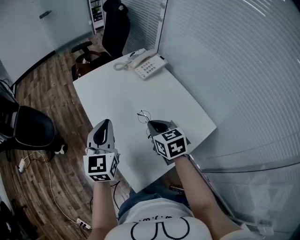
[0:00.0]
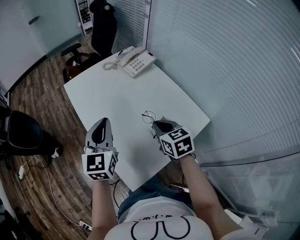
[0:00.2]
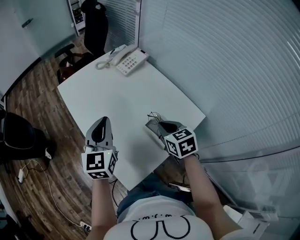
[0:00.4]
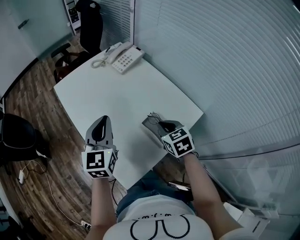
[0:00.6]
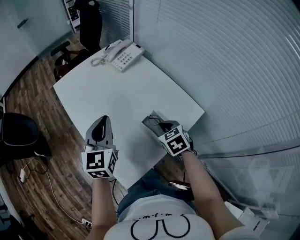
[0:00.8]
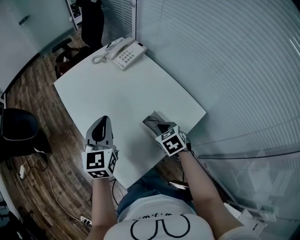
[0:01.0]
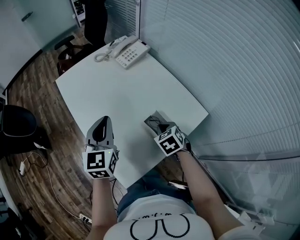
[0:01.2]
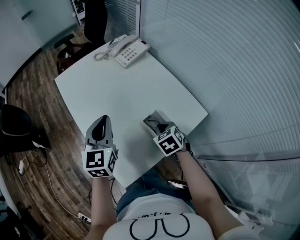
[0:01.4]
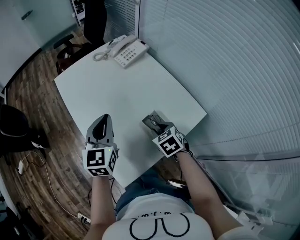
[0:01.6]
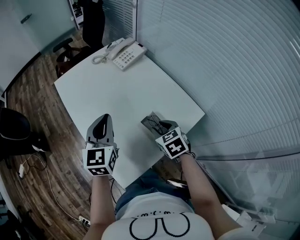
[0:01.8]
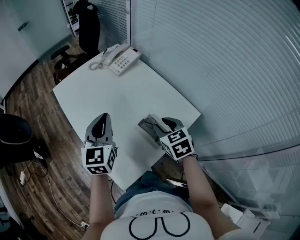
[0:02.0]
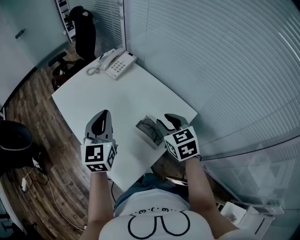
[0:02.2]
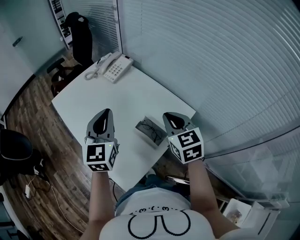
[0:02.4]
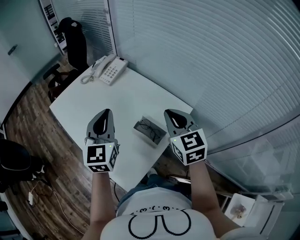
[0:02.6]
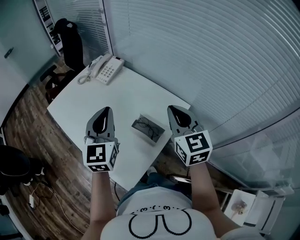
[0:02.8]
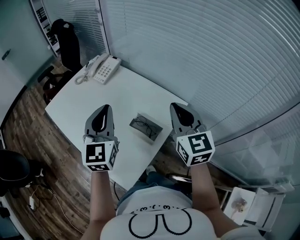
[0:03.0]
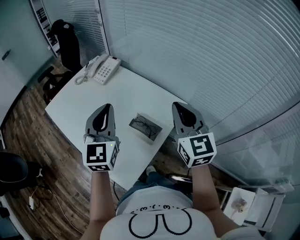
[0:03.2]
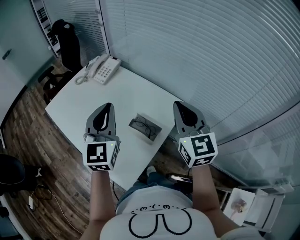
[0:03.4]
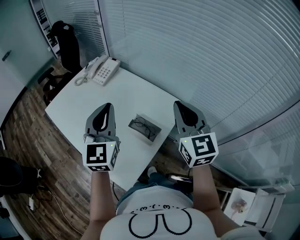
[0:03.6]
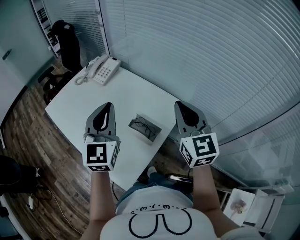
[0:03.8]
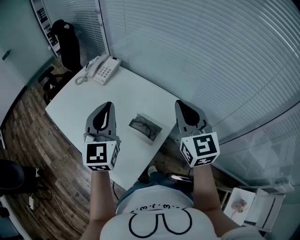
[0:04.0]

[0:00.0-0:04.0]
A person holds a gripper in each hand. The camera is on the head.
0:00.0 to 0:01.4: The left gripper shifts roughly 10 cm to the right; the right gripper is displaced to the right and downward by approximately 15 cm, and rotates approximately 30 degrees.
0:01.4 to 0:02.6: The right gripper travels upward by some 20 cm, angles its fingers upward, by some 40 degrees, and opens, then closes again. Meanwhile the left gripper is displaced upward and to the right by about 10 cm.
0:02.6 to 0:04.0: The right gripper travels upward by some 5 cm. Meanwhile the left gripper moves about 5 cm.

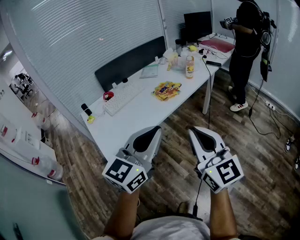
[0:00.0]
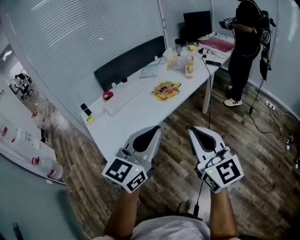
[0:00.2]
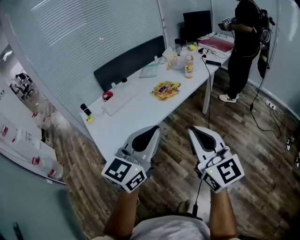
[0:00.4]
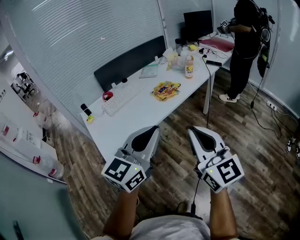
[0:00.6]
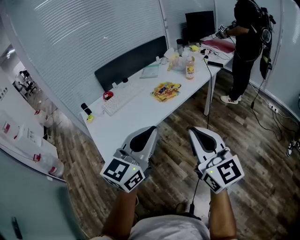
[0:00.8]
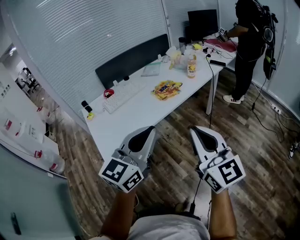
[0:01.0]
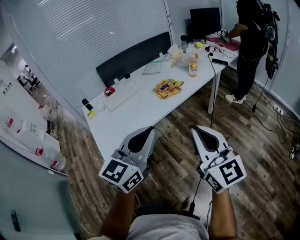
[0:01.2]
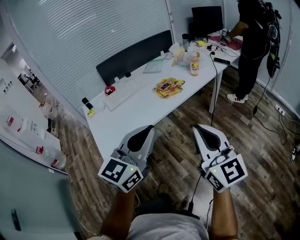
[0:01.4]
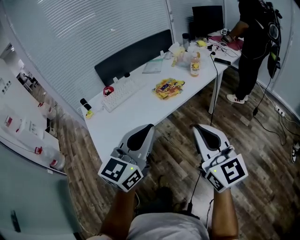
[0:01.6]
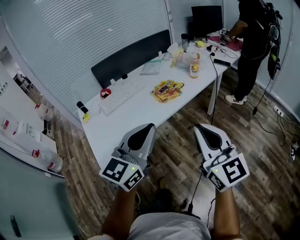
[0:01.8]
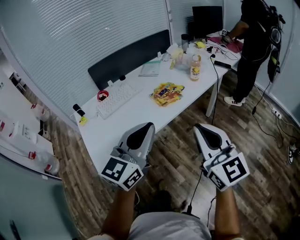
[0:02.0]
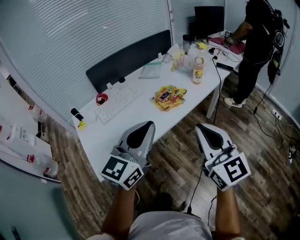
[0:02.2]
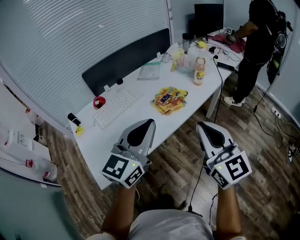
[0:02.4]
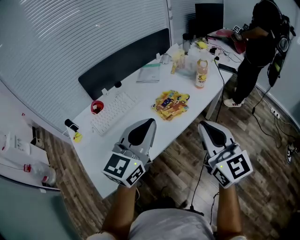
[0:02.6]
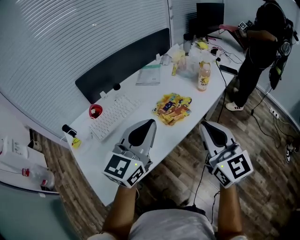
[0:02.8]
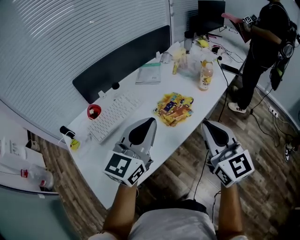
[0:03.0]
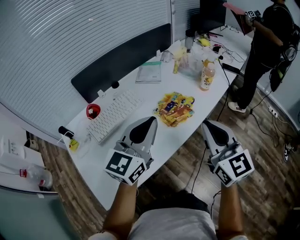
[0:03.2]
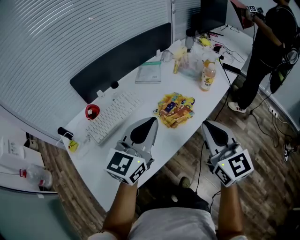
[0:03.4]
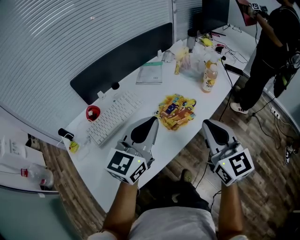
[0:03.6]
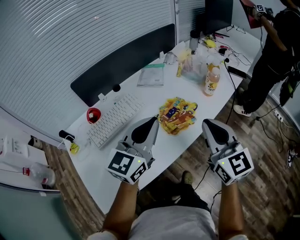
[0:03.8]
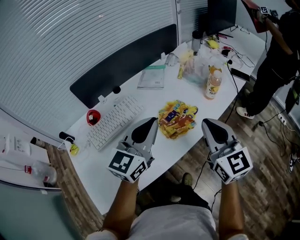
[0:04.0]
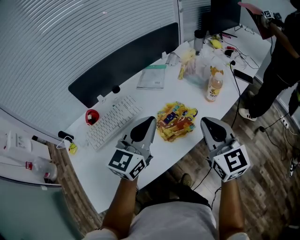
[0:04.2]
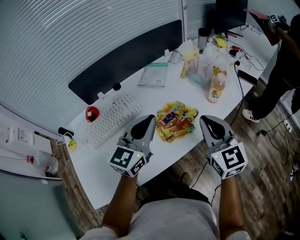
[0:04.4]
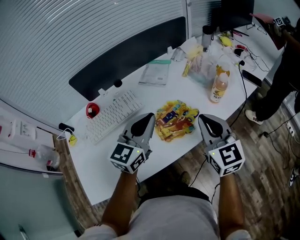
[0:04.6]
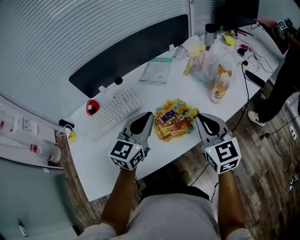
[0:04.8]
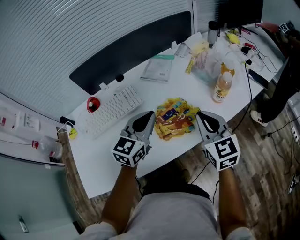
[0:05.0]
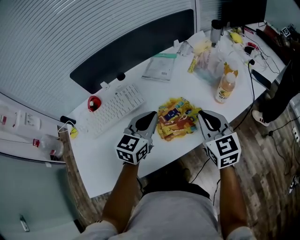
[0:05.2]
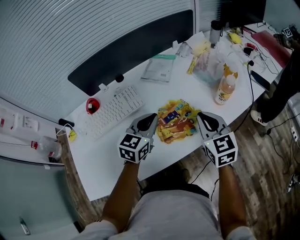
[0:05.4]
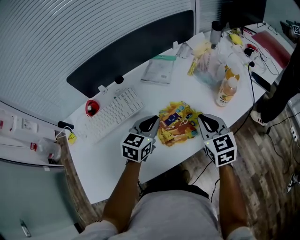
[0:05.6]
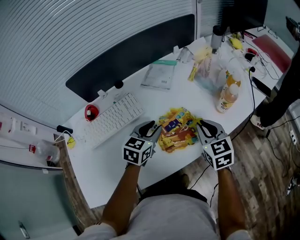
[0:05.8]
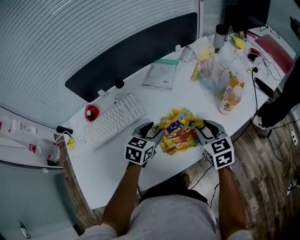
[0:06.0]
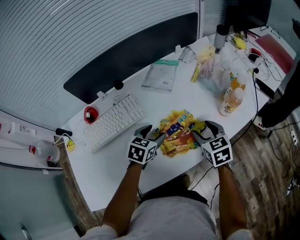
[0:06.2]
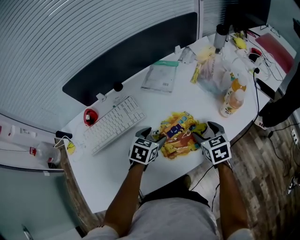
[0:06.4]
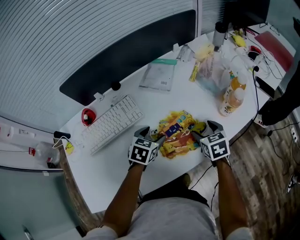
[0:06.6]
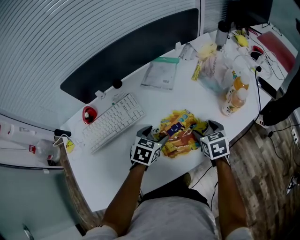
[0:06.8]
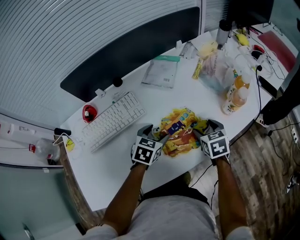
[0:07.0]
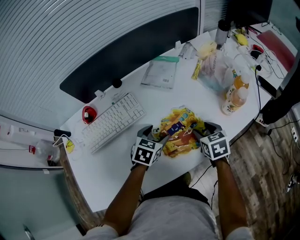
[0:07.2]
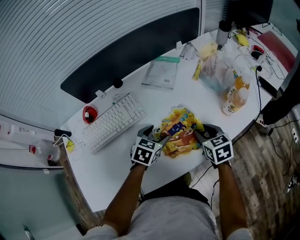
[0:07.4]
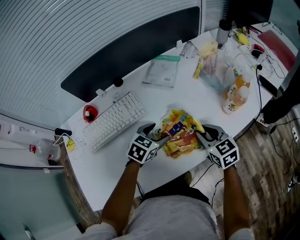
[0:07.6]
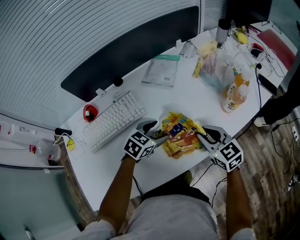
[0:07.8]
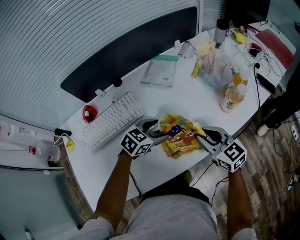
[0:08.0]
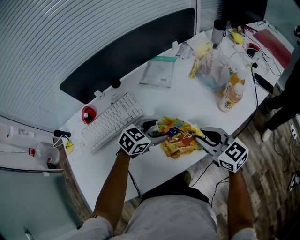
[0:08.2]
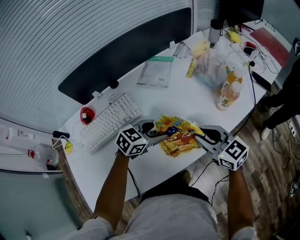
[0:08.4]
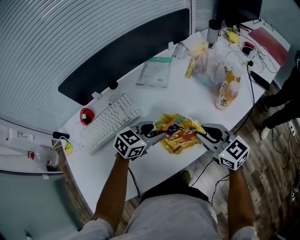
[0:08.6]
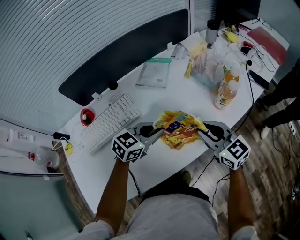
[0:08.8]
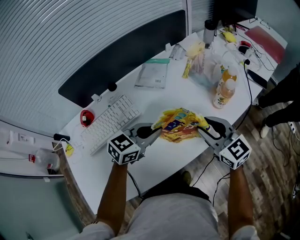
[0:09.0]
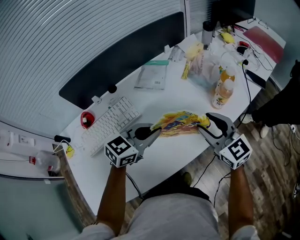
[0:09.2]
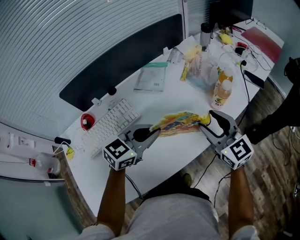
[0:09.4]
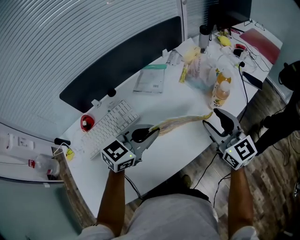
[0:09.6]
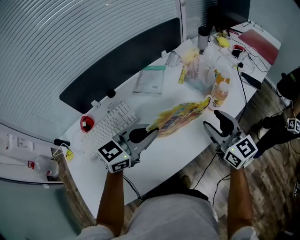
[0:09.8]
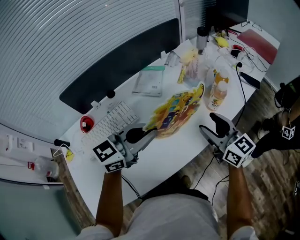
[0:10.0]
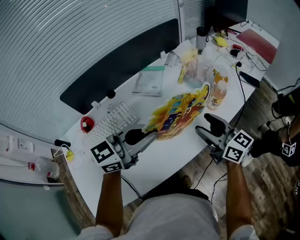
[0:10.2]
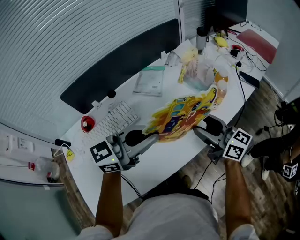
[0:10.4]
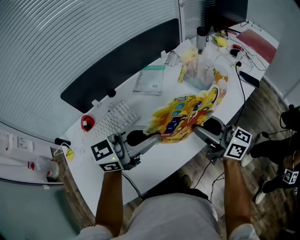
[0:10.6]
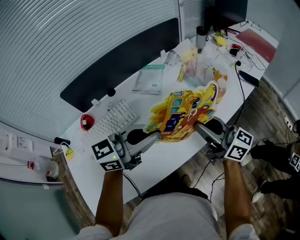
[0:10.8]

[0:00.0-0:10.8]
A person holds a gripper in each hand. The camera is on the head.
0:00.0 to 0:01.6: The right gripper travels forward and to the right by about 10 cm; the left gripper shifts roughly 5 cm forward.
0:01.6 to 0:03.0: The grippers both shift forward by approximately 30 cm.
0:03.0 to 0:04.6: The grippers both shift forward and downward by roughly 20 cm.
0:04.6 to 0:06.2: The right gripper moves downward and forward, roughly 20 cm, rotates roughly 30 degrees, and opens its fingers, while the left gripper is displaced downward by roughly 20 cm, points its fingers some 40 degrees further downward, and opens up.
0:06.2 to 0:07.8: The right gripper closes.
0:07.8 to 0:09.2: The two grippers go roughly 10 cm upward. The left gripper changes its angle by about 20 degrees, and closes its fingers.
0:09.2 to 0:10.8: The left gripper heads upward, covering roughly 10 cm, and turns by some 20 degrees. The right gripper goes roughly 5 cm upward, and rotates roughly 40 degrees.

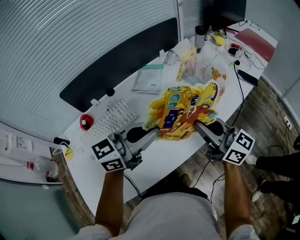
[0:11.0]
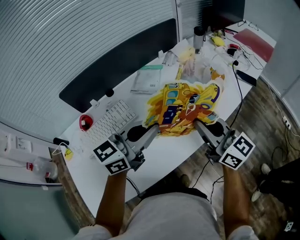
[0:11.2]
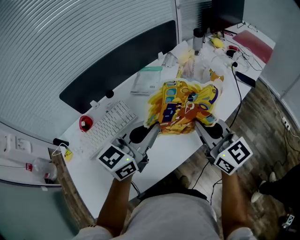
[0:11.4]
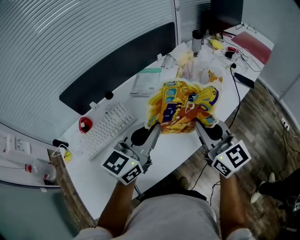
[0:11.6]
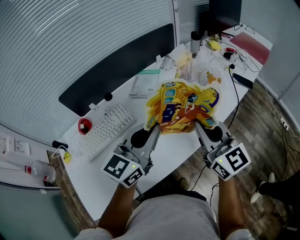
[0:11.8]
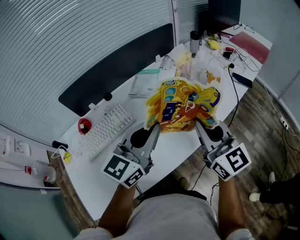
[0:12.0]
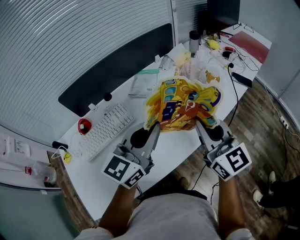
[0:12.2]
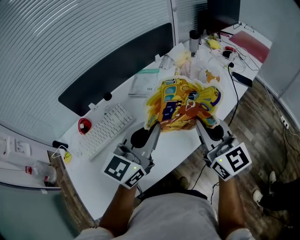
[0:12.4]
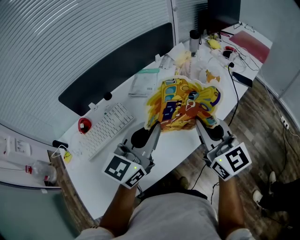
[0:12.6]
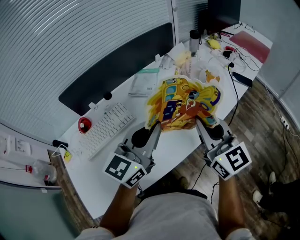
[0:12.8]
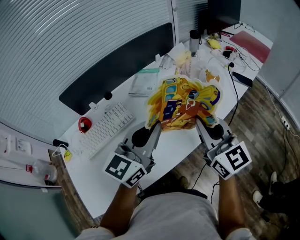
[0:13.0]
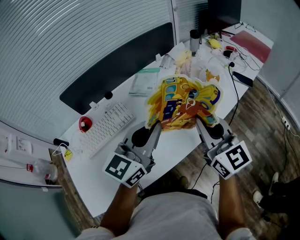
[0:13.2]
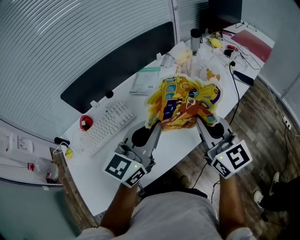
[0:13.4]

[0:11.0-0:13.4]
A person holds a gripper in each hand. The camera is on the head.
0:11.0 to 0:12.2: The right gripper changes its angle by about 30 degrees, while the left gripper changes its angle by approximately 30 degrees.
0:12.2 to 0:13.4: The two grippers keep their place.

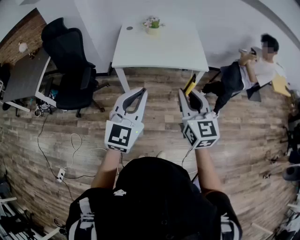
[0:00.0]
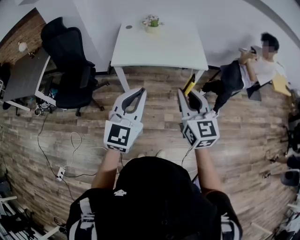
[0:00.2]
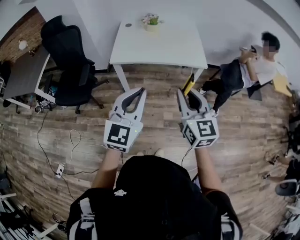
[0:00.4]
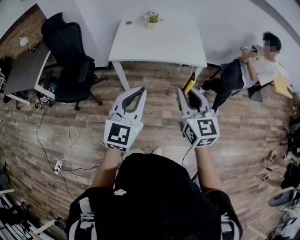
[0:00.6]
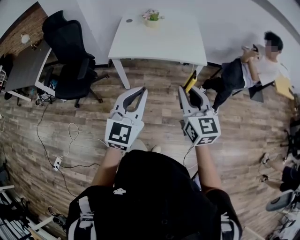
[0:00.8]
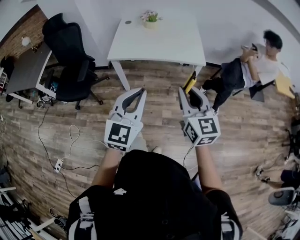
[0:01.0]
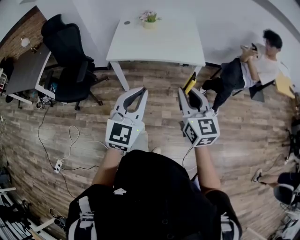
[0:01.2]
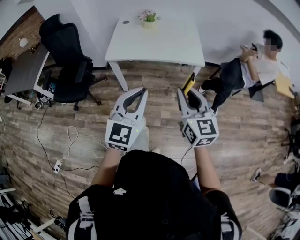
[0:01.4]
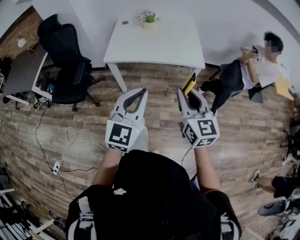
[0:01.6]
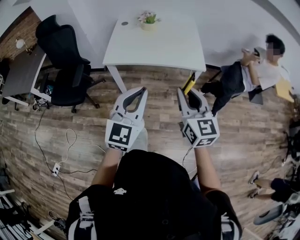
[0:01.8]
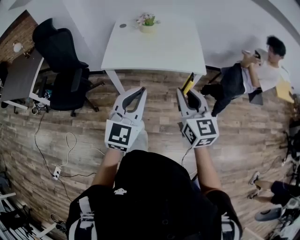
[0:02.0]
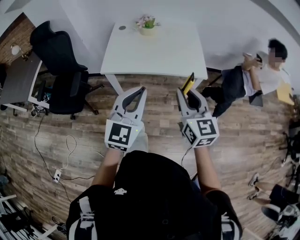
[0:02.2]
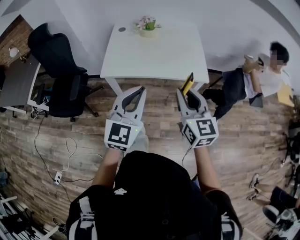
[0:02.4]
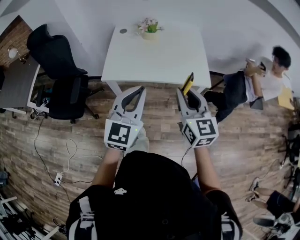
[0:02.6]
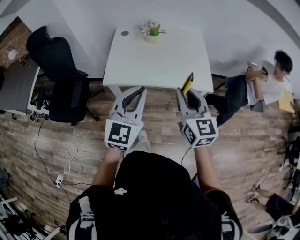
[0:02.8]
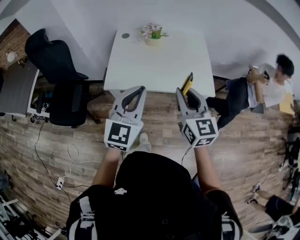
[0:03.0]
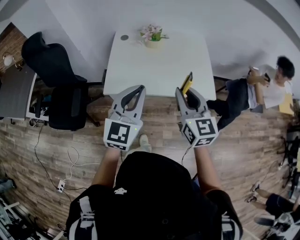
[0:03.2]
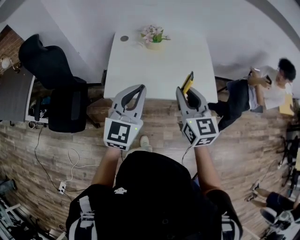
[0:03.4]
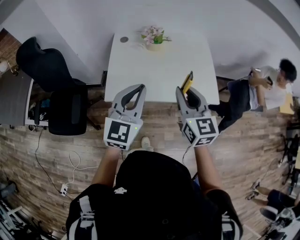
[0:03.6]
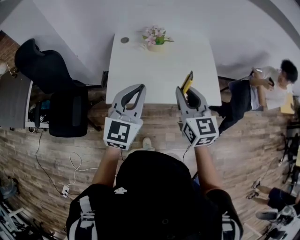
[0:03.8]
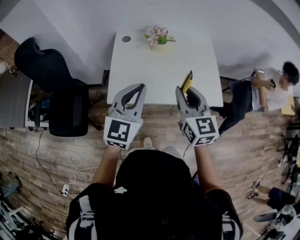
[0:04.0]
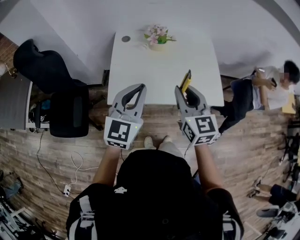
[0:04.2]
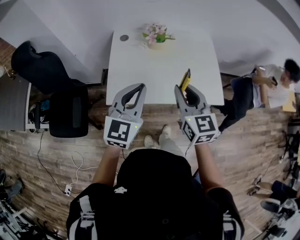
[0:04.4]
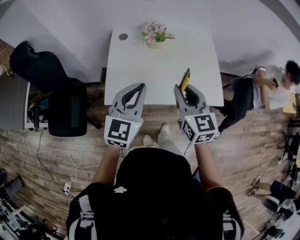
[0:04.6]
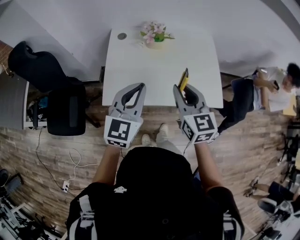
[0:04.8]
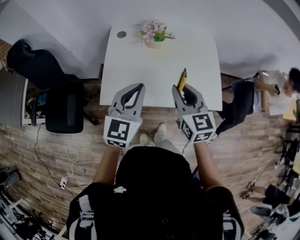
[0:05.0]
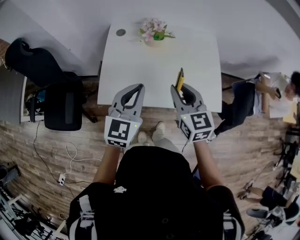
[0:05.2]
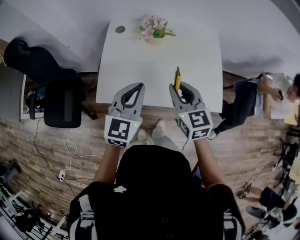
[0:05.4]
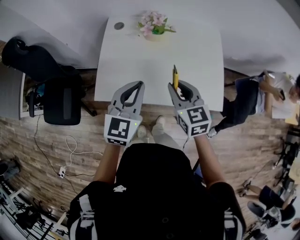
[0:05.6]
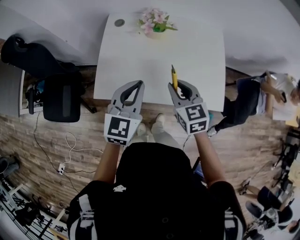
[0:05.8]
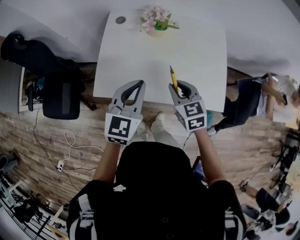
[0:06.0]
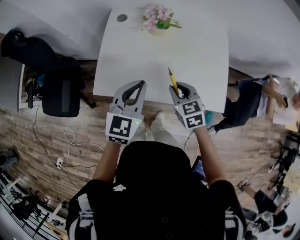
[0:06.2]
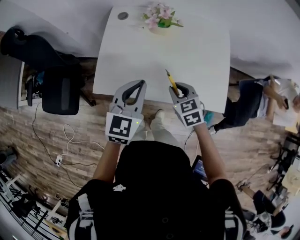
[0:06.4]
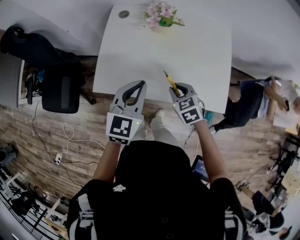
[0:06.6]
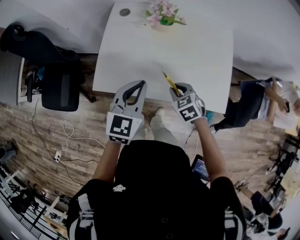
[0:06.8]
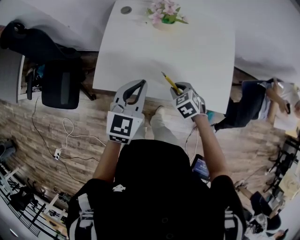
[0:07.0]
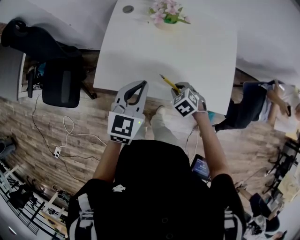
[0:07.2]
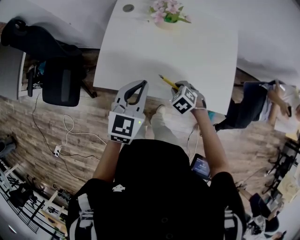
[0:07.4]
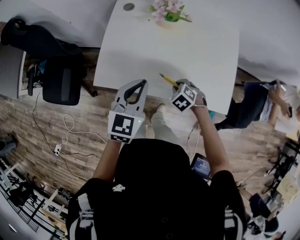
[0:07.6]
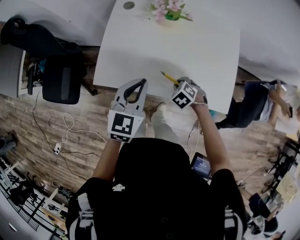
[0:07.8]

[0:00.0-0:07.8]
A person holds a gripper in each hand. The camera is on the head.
0:00.0 to 0:01.6: Both grippers travel together to the right, approximately 10 cm.
0:01.6 to 0:03.2: Both grippers move forward, about 30 cm.
0:03.2 to 0:04.6: Both grippers move forward, approximately 10 cm.
0:04.6 to 0:06.2: The right gripper shifts about 20 cm downward, and changes its angle by some 30 degrees, while the left gripper moves downward and forward, some 10 cm.
0:06.2 to 0:07.8: The right gripper travels downward by approximately 15 cm, and tips its fingers downward by approximately 30 degrees.
